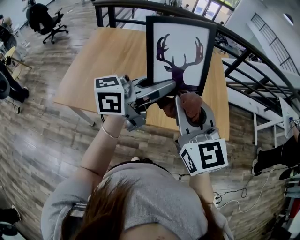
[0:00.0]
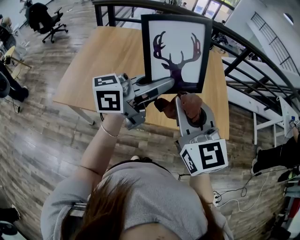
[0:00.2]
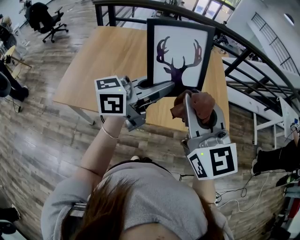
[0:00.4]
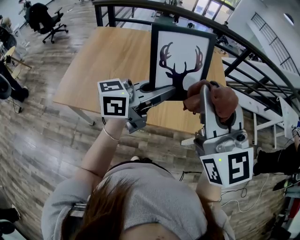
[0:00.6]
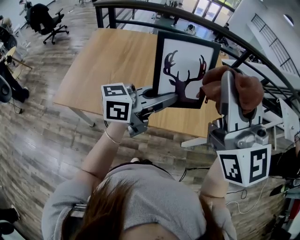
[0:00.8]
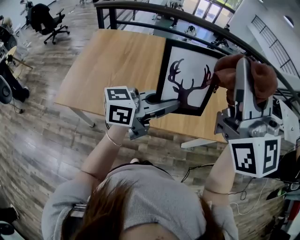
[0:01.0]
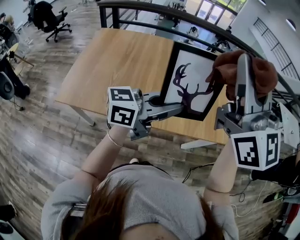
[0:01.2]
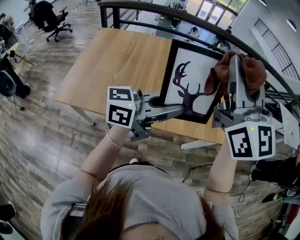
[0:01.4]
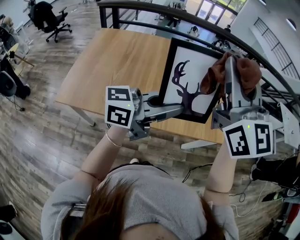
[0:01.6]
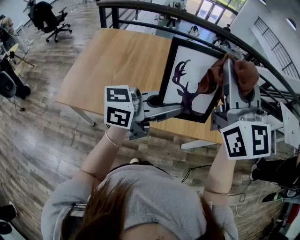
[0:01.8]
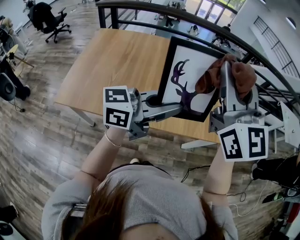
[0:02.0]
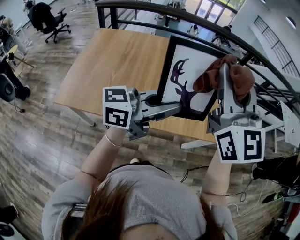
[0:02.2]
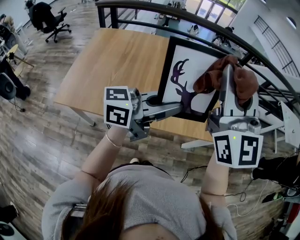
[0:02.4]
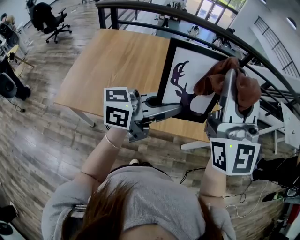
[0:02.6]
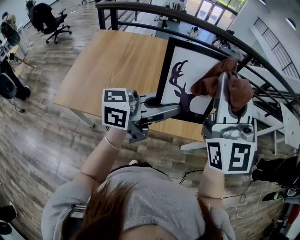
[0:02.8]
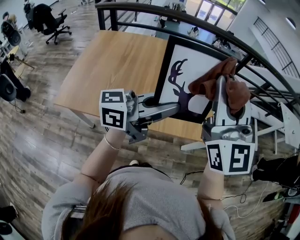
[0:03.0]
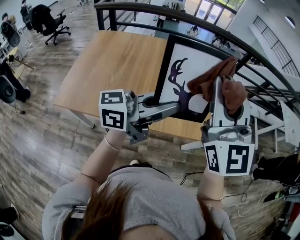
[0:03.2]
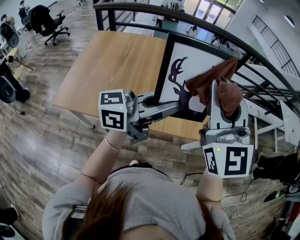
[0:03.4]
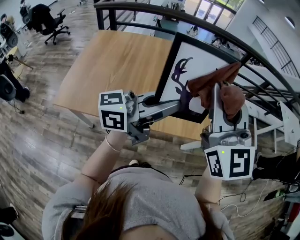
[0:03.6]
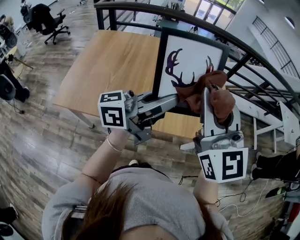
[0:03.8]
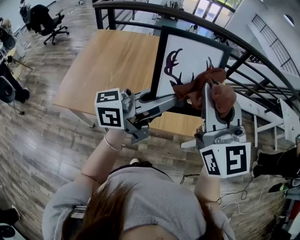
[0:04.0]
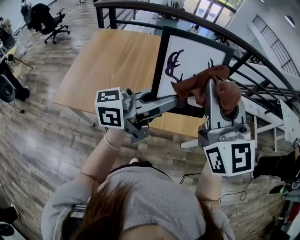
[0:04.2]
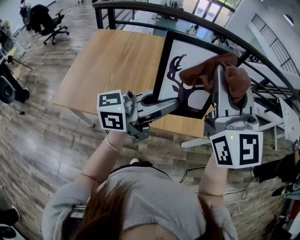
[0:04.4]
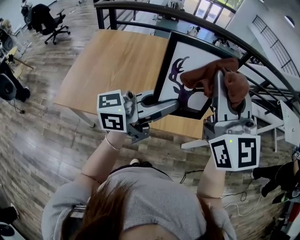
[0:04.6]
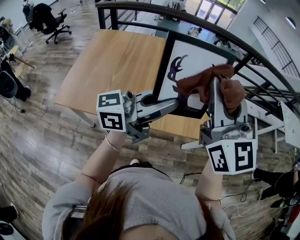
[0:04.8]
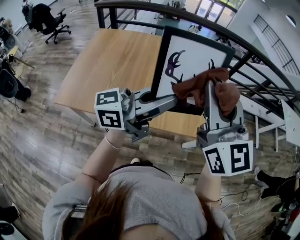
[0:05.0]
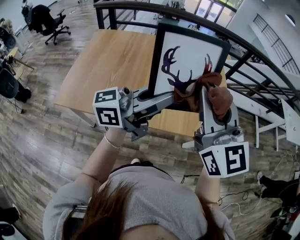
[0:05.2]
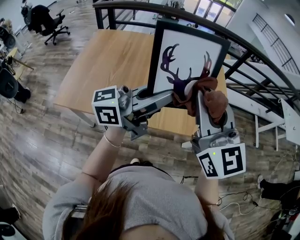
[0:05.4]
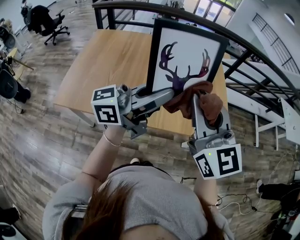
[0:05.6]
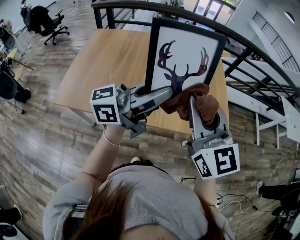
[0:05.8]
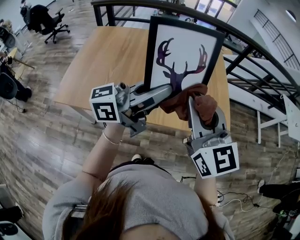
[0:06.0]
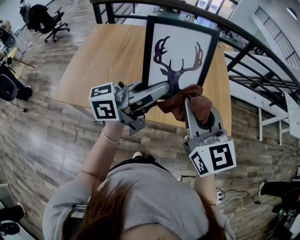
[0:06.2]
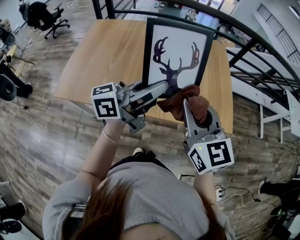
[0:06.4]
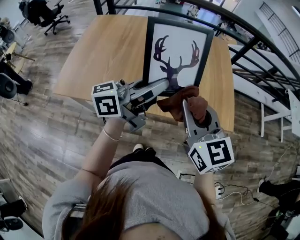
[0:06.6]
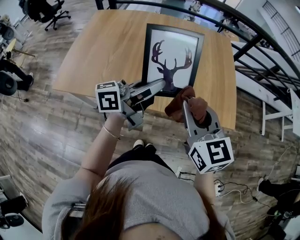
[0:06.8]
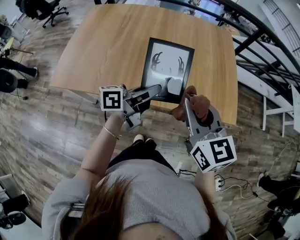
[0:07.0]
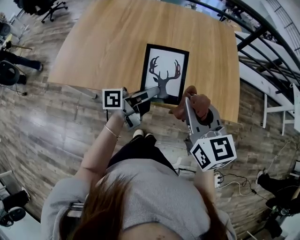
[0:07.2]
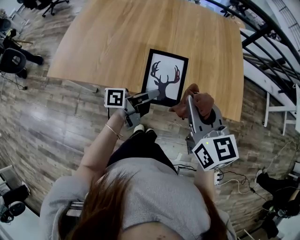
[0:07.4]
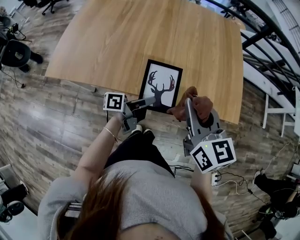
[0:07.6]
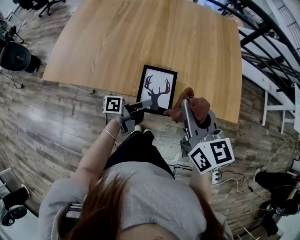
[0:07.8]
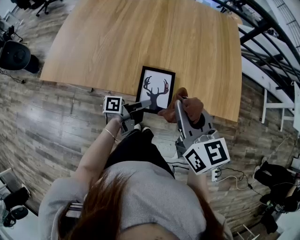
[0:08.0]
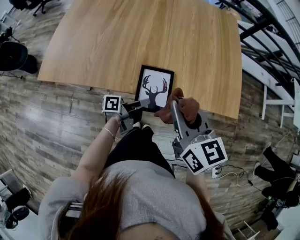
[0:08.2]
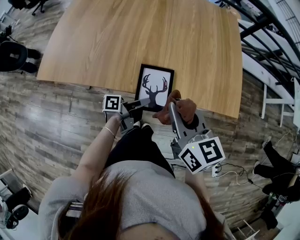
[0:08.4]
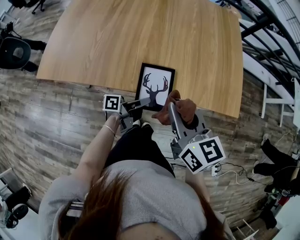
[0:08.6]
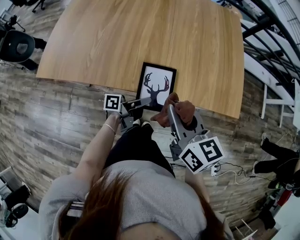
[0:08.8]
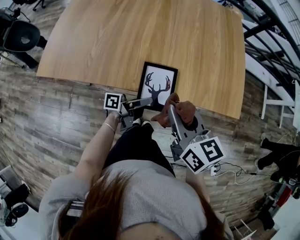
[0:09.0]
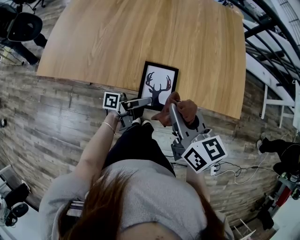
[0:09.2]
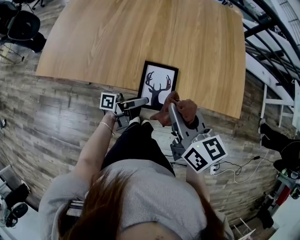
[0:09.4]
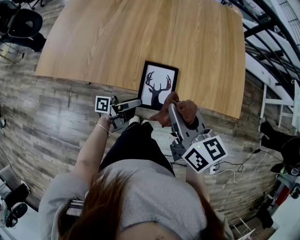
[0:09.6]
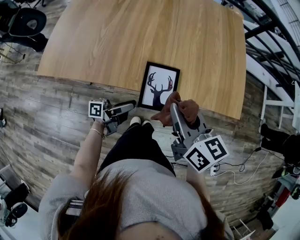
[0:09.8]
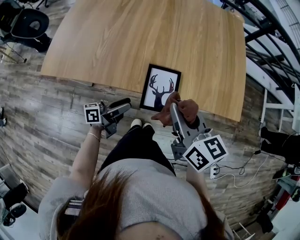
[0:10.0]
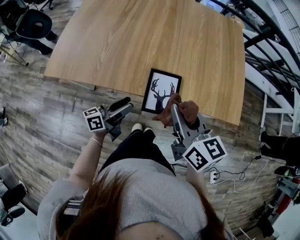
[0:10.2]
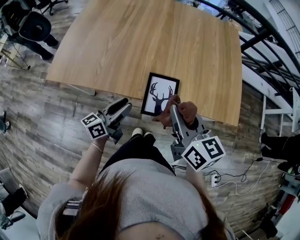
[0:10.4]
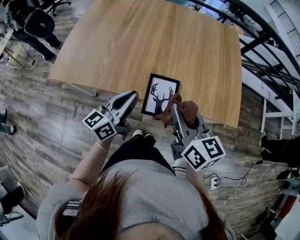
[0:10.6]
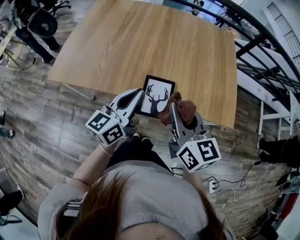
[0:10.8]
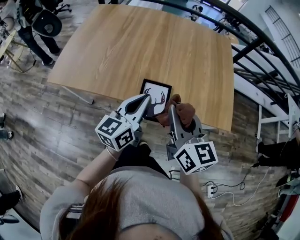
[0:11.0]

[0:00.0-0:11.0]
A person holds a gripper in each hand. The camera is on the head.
0:00.0 to 0:01.6: The right gripper is displaced upward and forward by roughly 15 cm.
0:01.6 to 0:03.2: The right gripper heads downward, covering roughly 5 cm.
0:03.2 to 0:04.8: There are only small adjustments of the grippers.
0:04.8 to 0:06.2: The right gripper goes some 10 cm downward.
0:06.2 to 0:07.8: The right gripper travels downward by about 15 cm, and rotates approximately 20 degrees. Meanwhile the left gripper is displaced downward by approximately 35 cm, and rolls counterclockwise, seen from behind, by roughly 50 degrees.
0:07.8 to 0:09.4: The left gripper opens its fingers. Meanwhile the right gripper ends up some 5 cm from where it was.
0:09.4 to 0:11.0: The left gripper travels upward by approximately 20 cm, rolls clockwise, seen from behind, by about 60 degrees, and closes. The right gripper shifts approximately 5 cm upward.

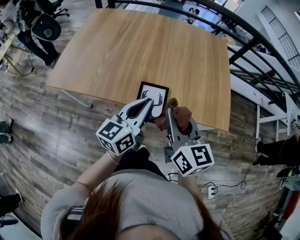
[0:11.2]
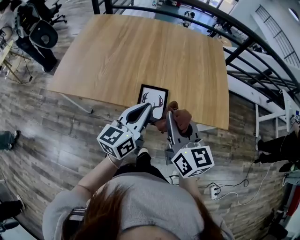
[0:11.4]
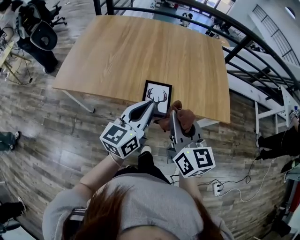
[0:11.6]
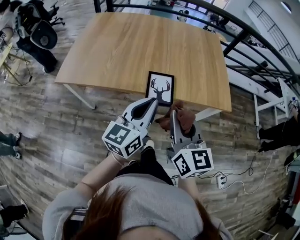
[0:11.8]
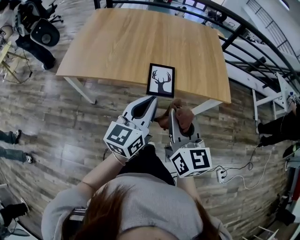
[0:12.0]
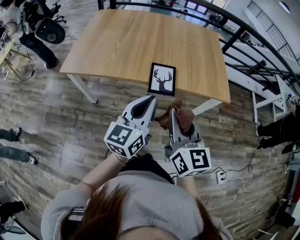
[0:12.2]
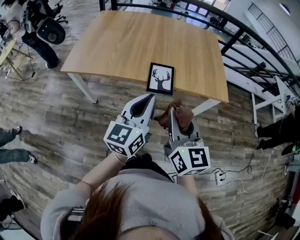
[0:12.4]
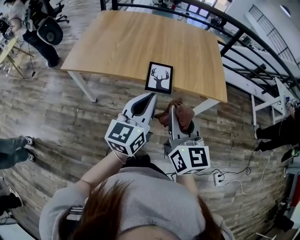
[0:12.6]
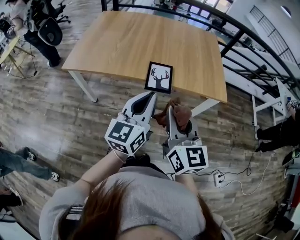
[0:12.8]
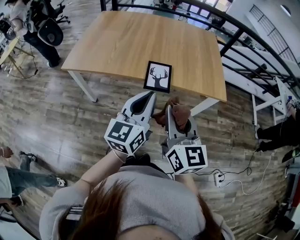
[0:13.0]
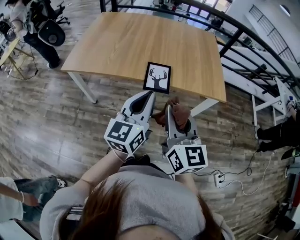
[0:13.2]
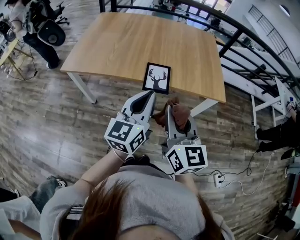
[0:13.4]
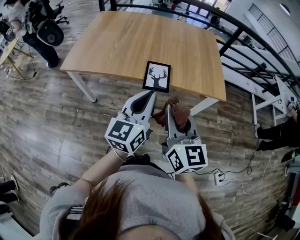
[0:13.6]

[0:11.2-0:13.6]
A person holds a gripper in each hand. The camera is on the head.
0:11.2 to 0:12.4: Both grippers travel together backward, approximately 20 cm.
0:12.4 to 0:13.6: The grippers stay close to where they were, moving slightly.

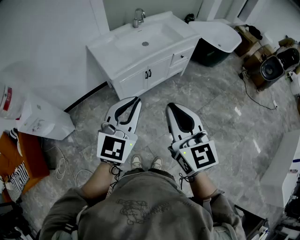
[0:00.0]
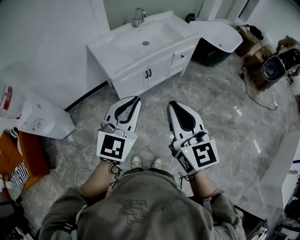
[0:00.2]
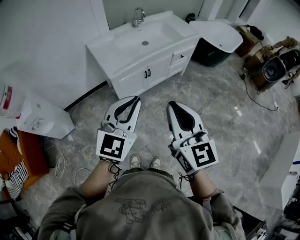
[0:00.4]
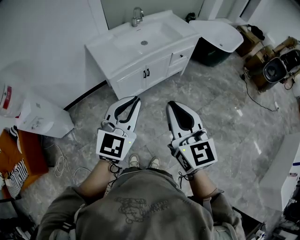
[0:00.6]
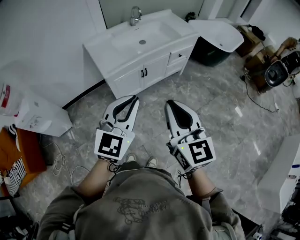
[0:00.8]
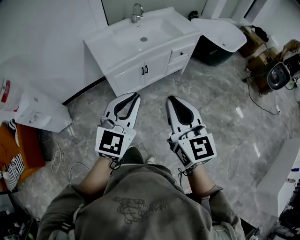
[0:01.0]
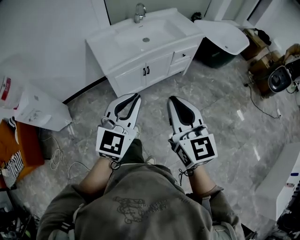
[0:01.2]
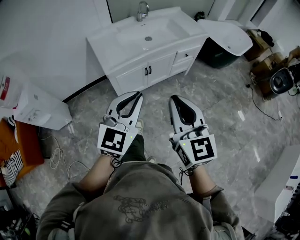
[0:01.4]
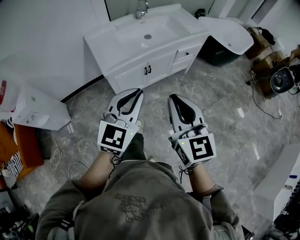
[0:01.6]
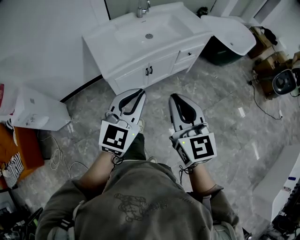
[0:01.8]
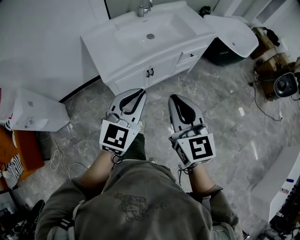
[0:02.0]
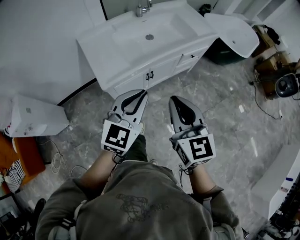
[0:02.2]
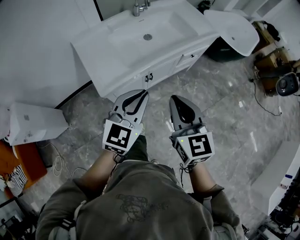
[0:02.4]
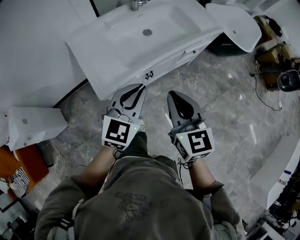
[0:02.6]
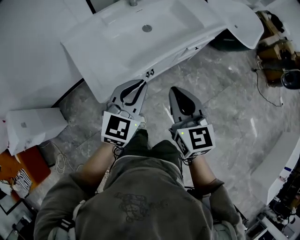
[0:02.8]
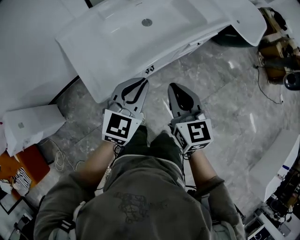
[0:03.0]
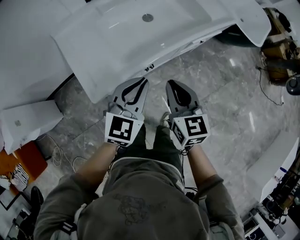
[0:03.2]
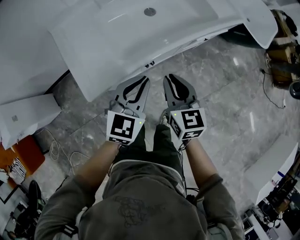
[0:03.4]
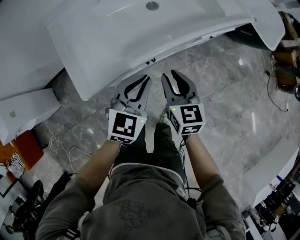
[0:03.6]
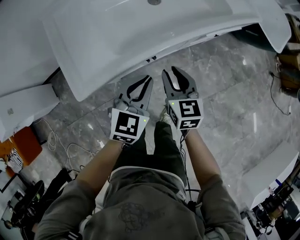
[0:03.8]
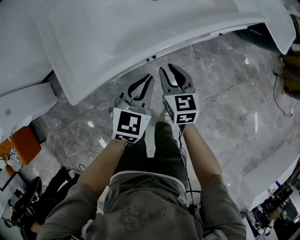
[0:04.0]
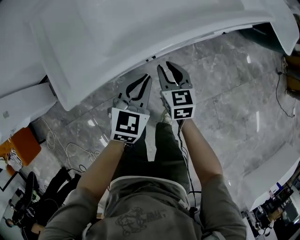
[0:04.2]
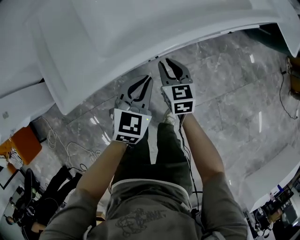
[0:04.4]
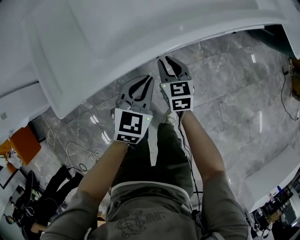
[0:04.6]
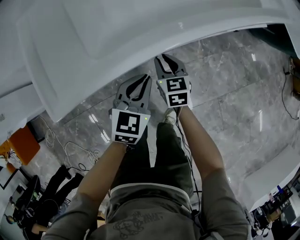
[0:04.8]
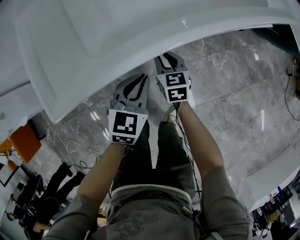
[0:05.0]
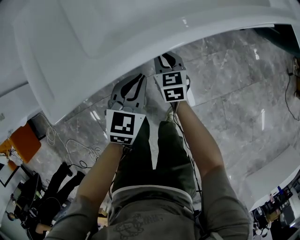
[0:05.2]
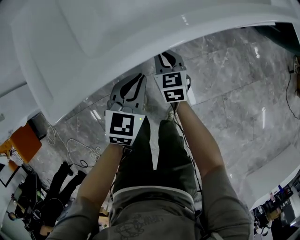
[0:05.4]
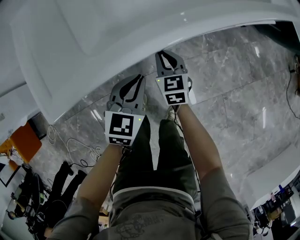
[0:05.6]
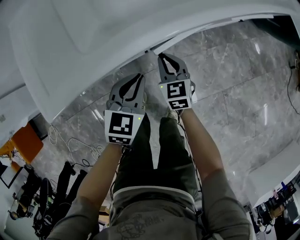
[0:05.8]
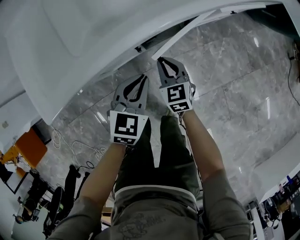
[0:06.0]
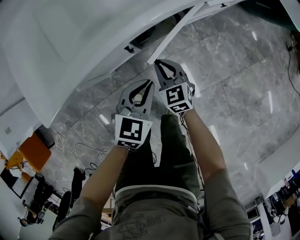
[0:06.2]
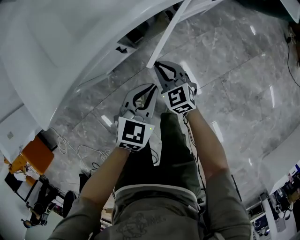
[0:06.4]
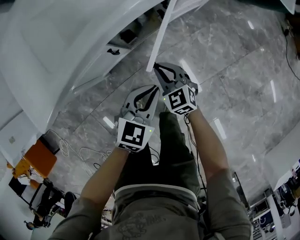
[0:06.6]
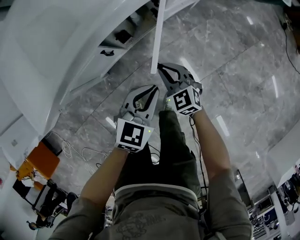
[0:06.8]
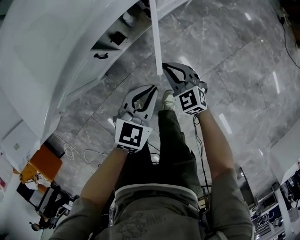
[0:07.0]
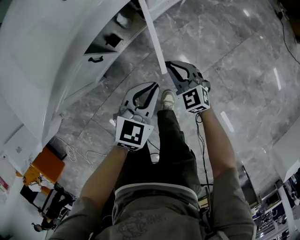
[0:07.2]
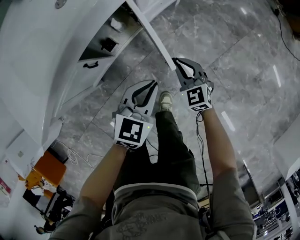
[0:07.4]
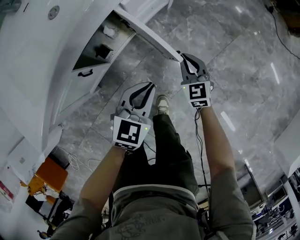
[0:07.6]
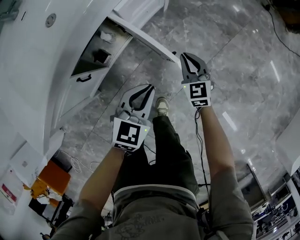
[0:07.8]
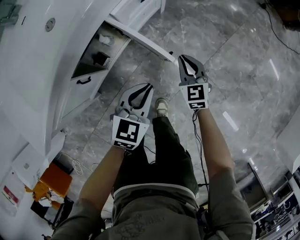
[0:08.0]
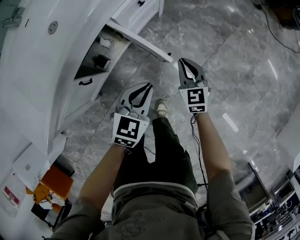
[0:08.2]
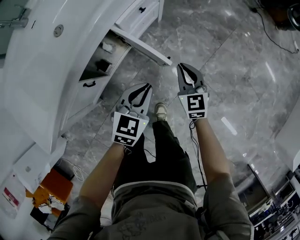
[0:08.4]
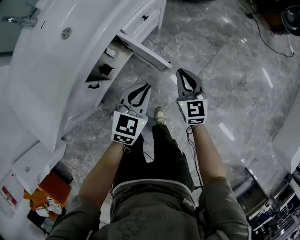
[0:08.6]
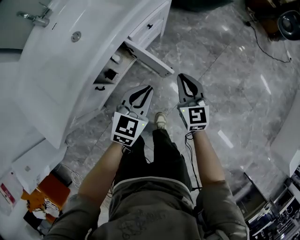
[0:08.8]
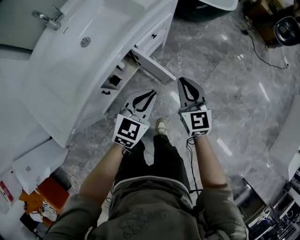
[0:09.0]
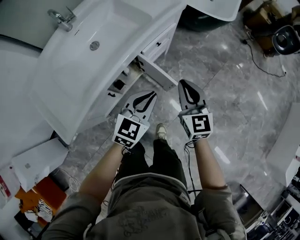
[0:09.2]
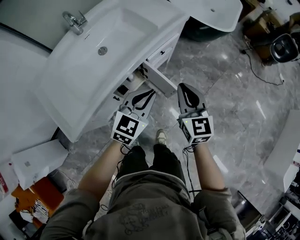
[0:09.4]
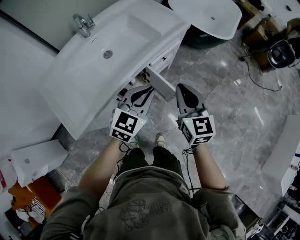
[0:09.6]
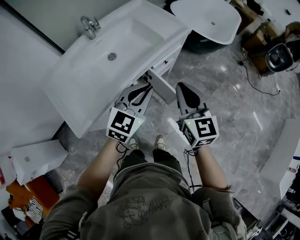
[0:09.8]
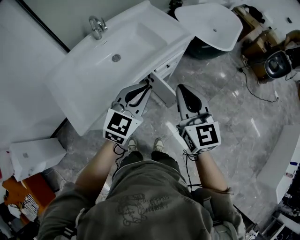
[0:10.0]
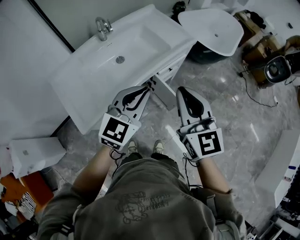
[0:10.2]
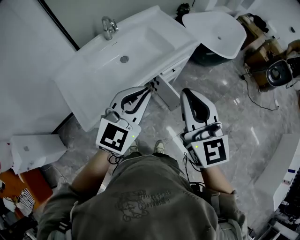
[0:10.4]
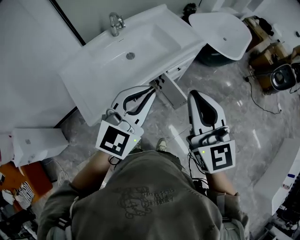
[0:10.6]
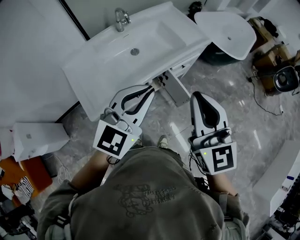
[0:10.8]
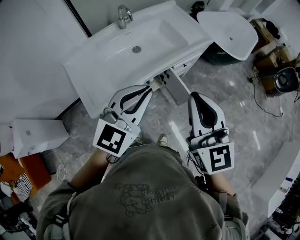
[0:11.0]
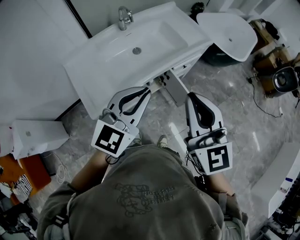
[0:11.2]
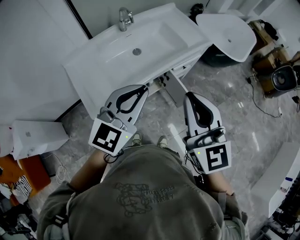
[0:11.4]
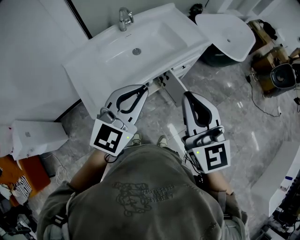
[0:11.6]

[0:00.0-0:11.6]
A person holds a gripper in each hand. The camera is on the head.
0:00.0 to 0:01.4: The right gripper is displaced forward and to the right by approximately 10 cm; the left gripper is displaced to the right, forward and downward by some 10 cm.
0:01.4 to 0:02.8: The two grippers go some 30 cm forward.
0:02.8 to 0:04.4: The right gripper moves downward and forward, some 40 cm; the left gripper moves downward, about 30 cm, and changes its angle by roughly 20 degrees.
0:04.4 to 0:05.8: The two grippers go roughly 10 cm downward.
0:05.8 to 0:07.2: The two grippers go approximately 20 cm to the right. The left gripper changes its angle by roughly 30 degrees.
0:07.2 to 0:08.8: The left gripper heads upward and forward, covering some 15 cm; the right gripper is displaced upward and to the right by some 25 cm, and rotates some 40 degrees.
0:08.8 to 0:10.2: The left gripper heads upward and to the left, covering some 35 cm, and turns by roughly 20 degrees; the right gripper travels upward by some 40 cm, and rotates some 20 degrees.
0:10.2 to 0:11.6: The left gripper moves to the left, backward and upward, approximately 10 cm; the right gripper travels backward, to the left and upward by about 10 cm.
